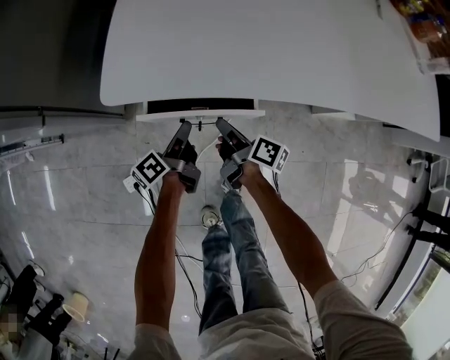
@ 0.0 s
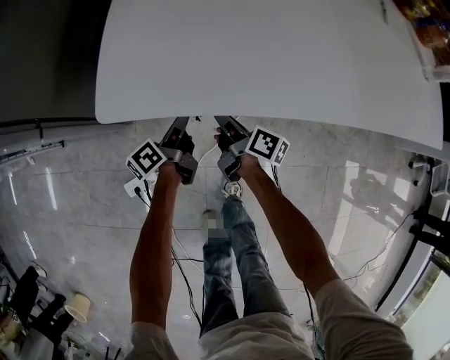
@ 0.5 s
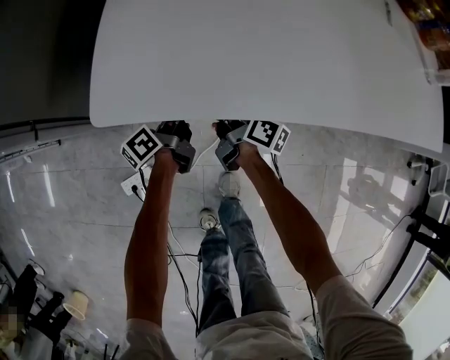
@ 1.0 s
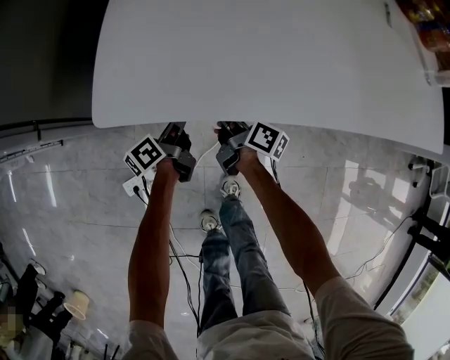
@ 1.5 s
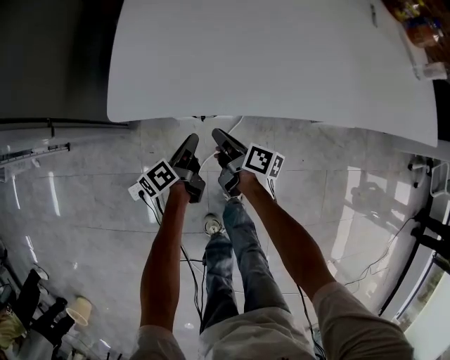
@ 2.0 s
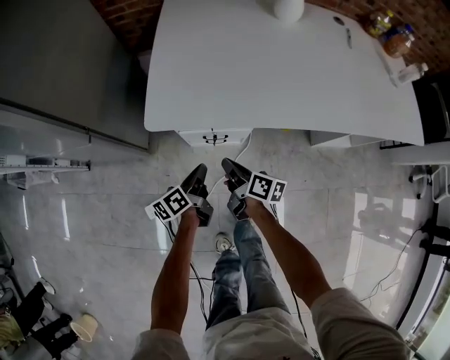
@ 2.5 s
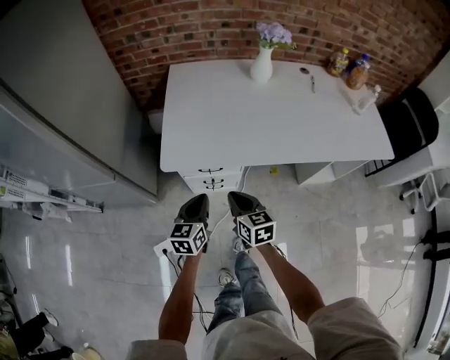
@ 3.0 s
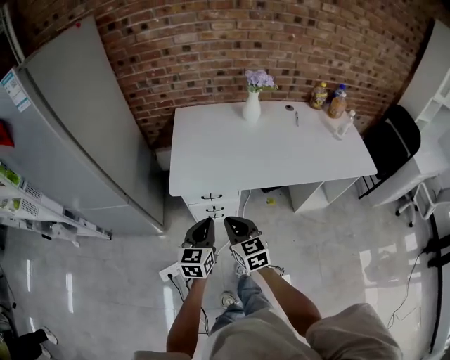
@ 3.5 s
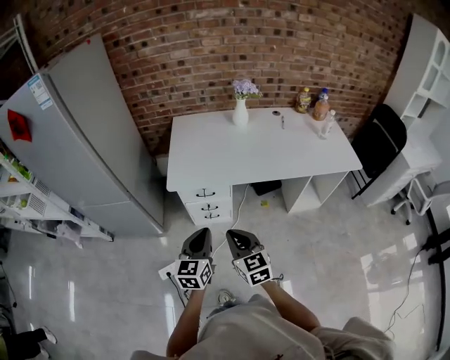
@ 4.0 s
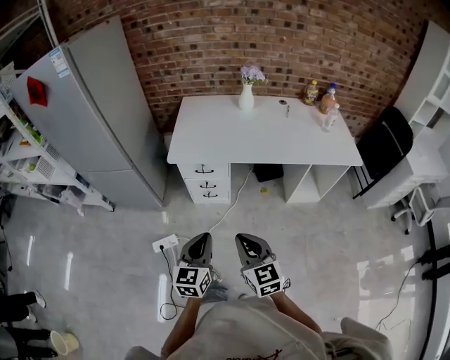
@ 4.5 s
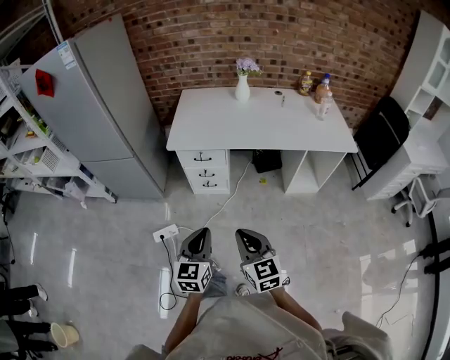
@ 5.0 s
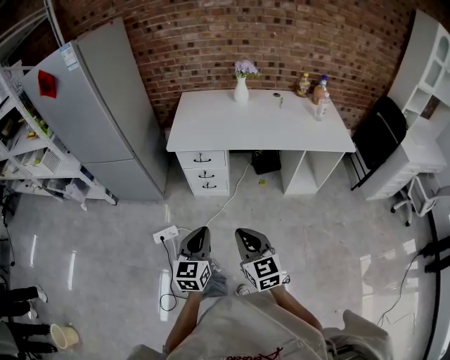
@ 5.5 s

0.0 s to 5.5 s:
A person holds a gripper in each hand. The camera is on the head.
0.0 to 2.0 s: The left gripper travels forward and back again, some 10 cm each way, while the right gripper goes forward and returns, some 10 cm each way.
2.0 to 3.5 s: The grippers both shift upward and backward by some 40 cm. The right gripper rotates around the line of its fingers by roughly 70 degrees, counterclockwise from behind. Meanwhile the left gripper twists roughly 60 degrees clockwise, seen from behind.
3.5 to 5.5 s: The grippers both shift backward by approximately 35 cm.

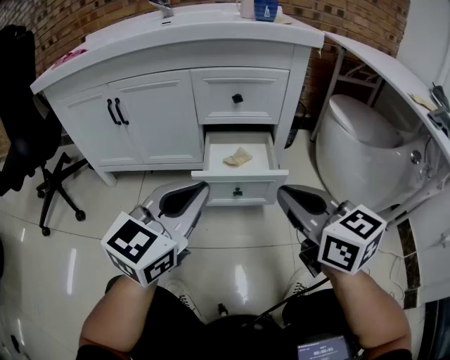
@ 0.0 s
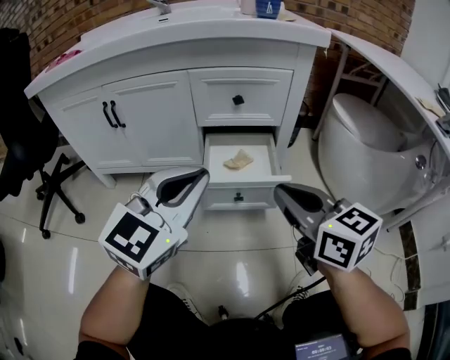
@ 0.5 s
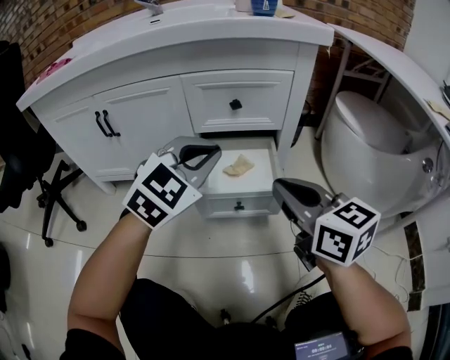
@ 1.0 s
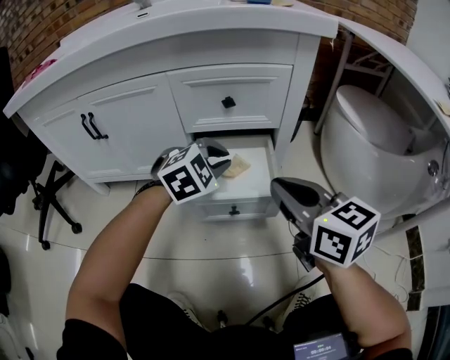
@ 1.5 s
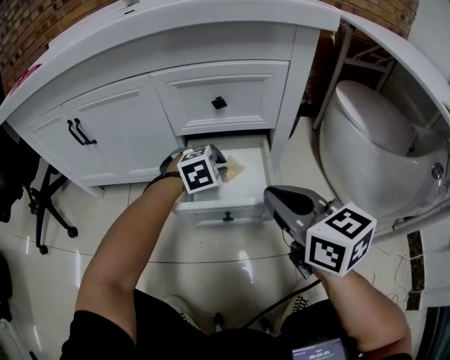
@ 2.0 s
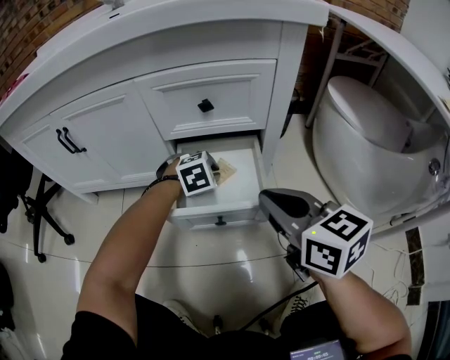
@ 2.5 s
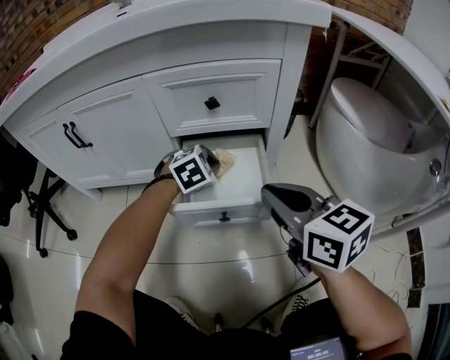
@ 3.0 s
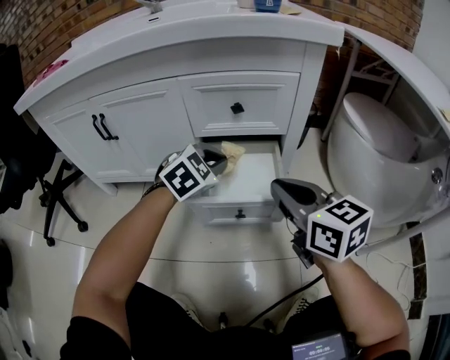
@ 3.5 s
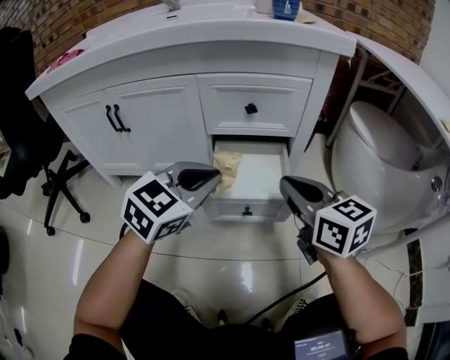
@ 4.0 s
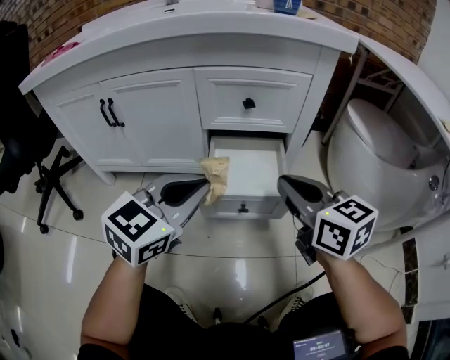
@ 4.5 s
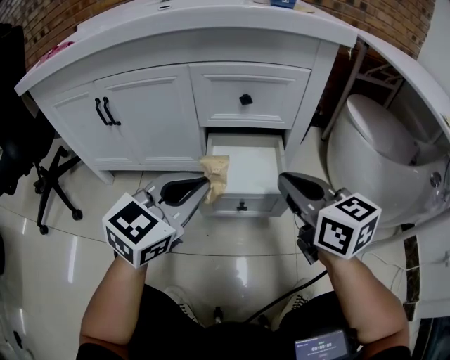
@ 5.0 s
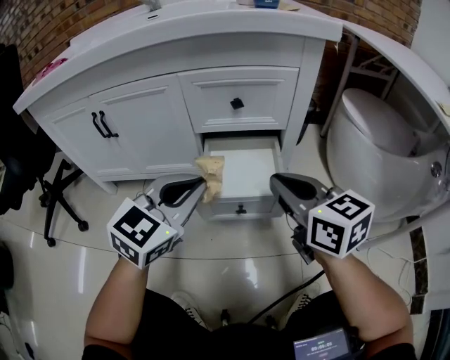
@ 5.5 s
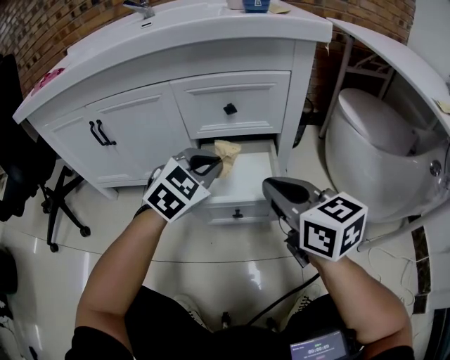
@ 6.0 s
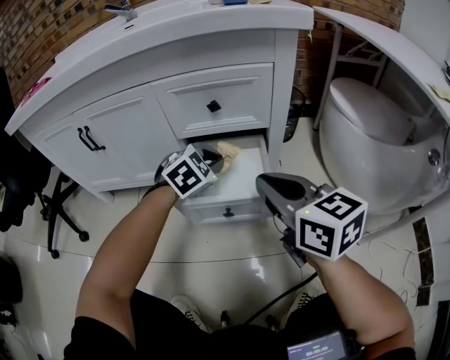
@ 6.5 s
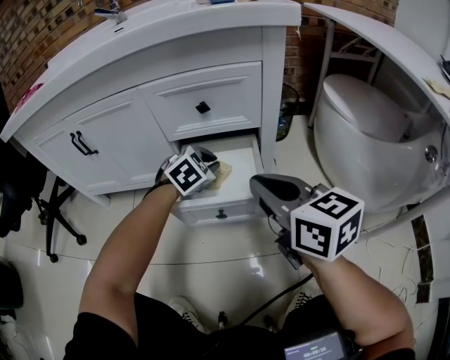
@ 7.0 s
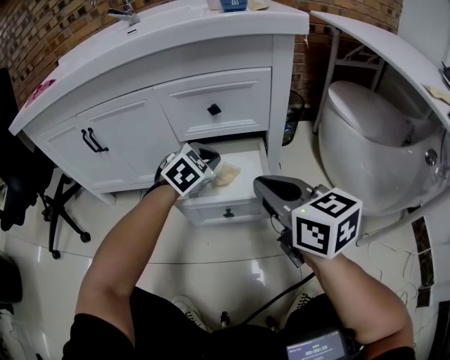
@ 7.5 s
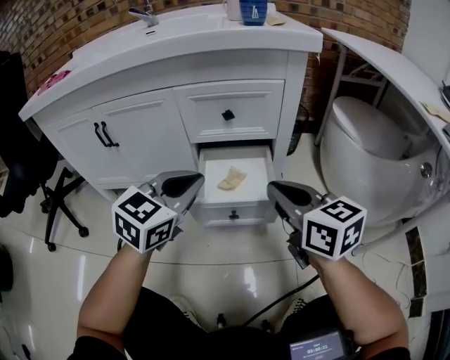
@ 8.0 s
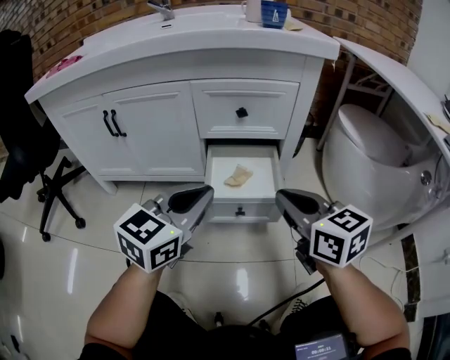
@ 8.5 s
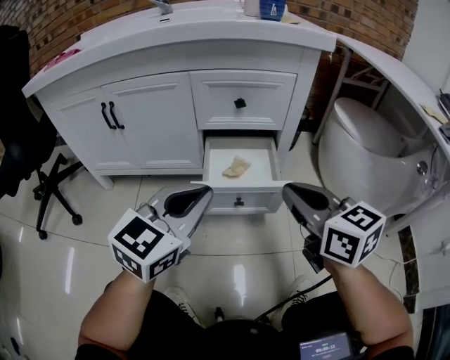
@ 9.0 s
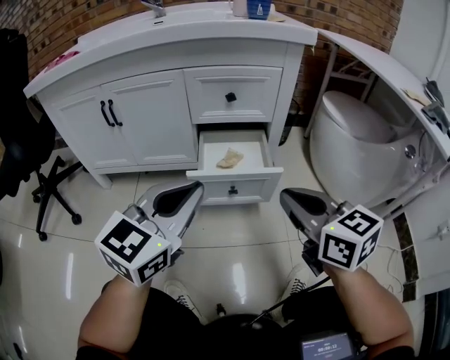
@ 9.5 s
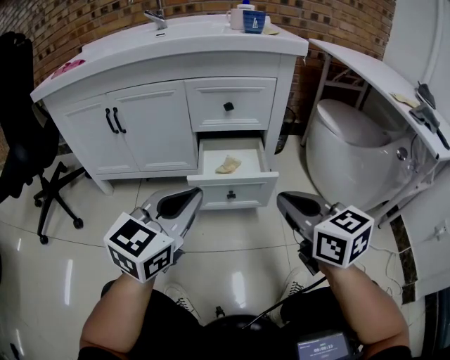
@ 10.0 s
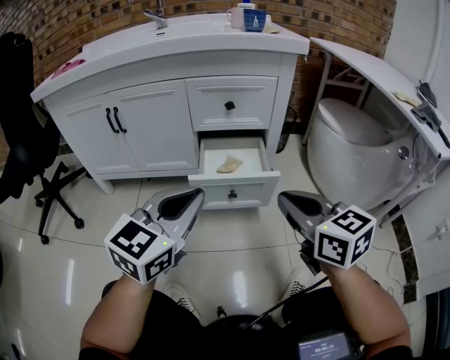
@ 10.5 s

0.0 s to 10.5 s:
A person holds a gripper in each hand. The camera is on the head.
0.0 to 2.0 s: The left gripper moves forward and downward, roughly 35 cm, and tilts its fingers some 50 degrees downward, while the right gripper travels forward and downward by approximately 15 cm.
2.0 to 4.0 s: The left gripper moves upward and backward, roughly 25 cm, and points its fingers about 30 degrees further upward.
4.0 to 6.5 s: The left gripper travels forward, downward and to the right by roughly 20 cm, and turns by some 30 degrees.
6.5 to 8.5 s: The left gripper goes some 25 cm backward, upward and to the left, and angles its fingers upward, by approximately 30 degrees.
8.5 to 10.5 s: The grippers both shift backward by approximately 10 cm.

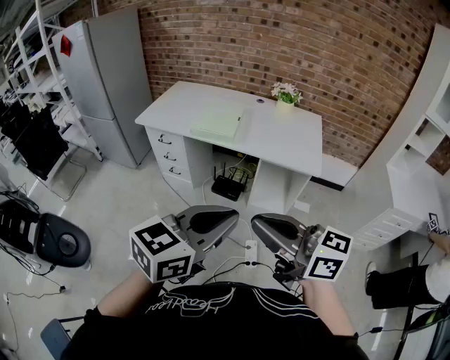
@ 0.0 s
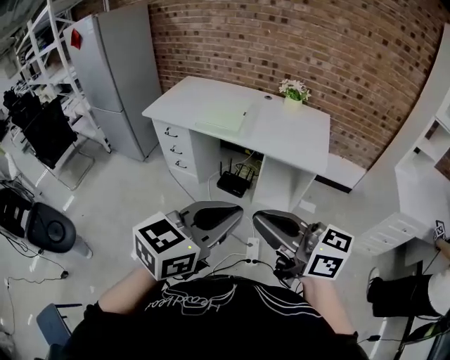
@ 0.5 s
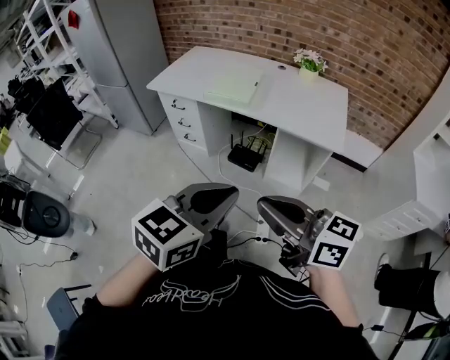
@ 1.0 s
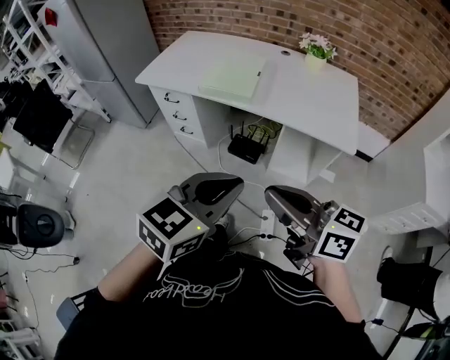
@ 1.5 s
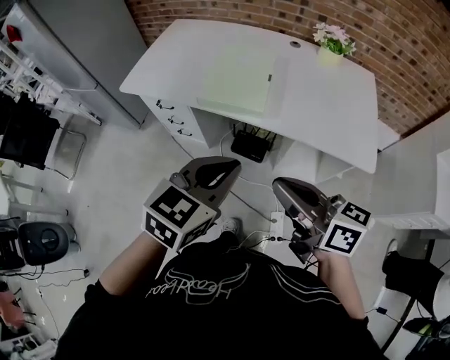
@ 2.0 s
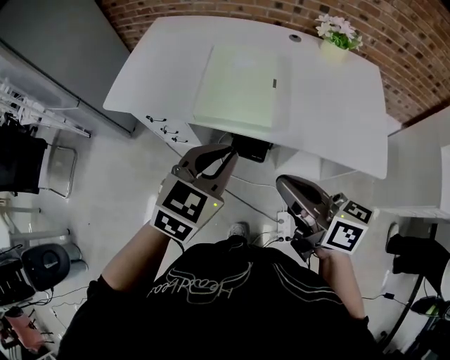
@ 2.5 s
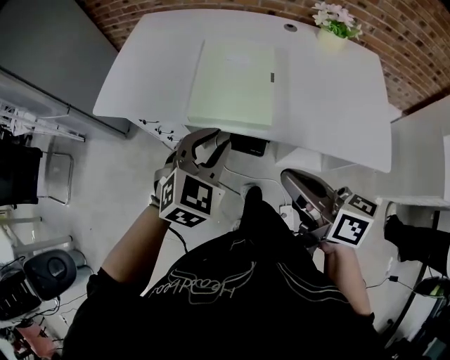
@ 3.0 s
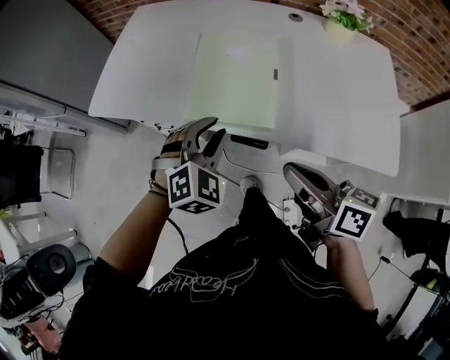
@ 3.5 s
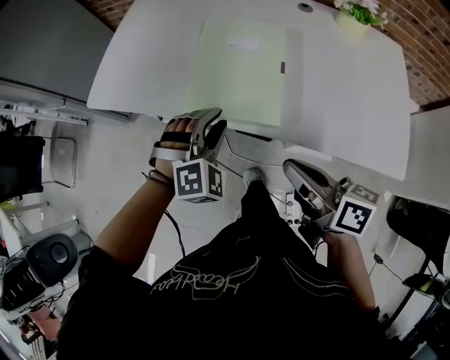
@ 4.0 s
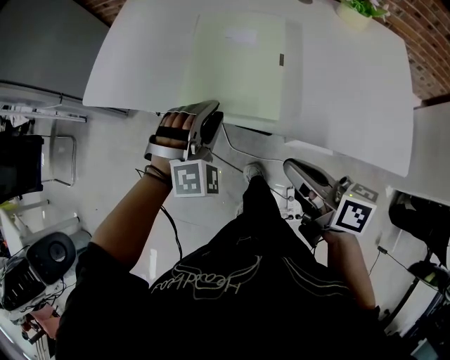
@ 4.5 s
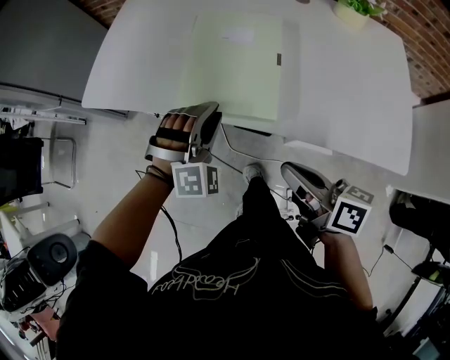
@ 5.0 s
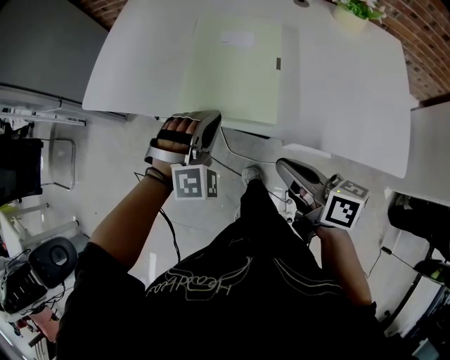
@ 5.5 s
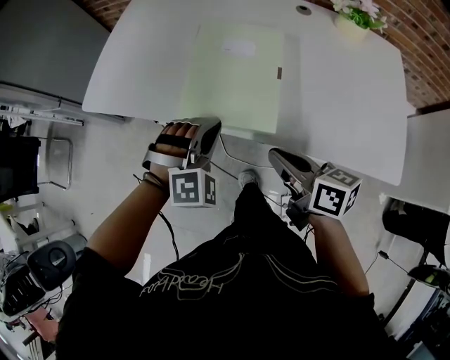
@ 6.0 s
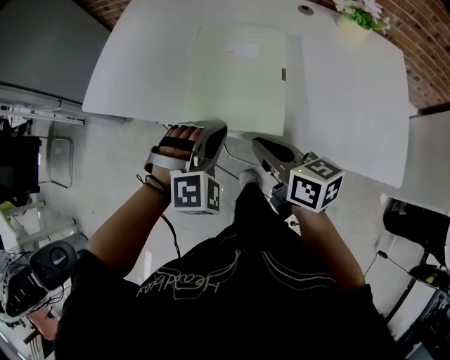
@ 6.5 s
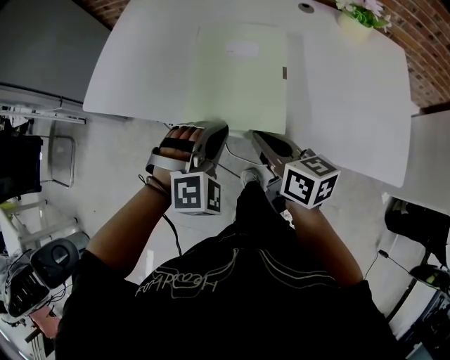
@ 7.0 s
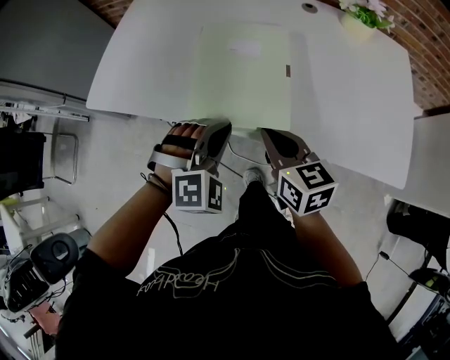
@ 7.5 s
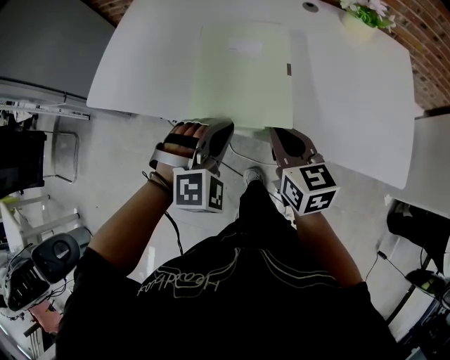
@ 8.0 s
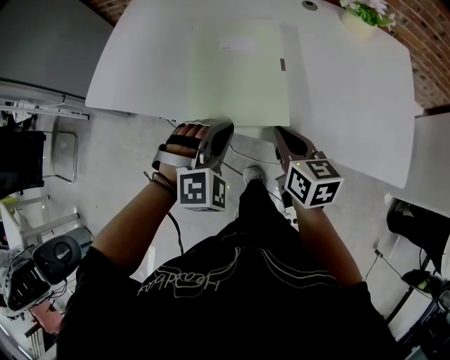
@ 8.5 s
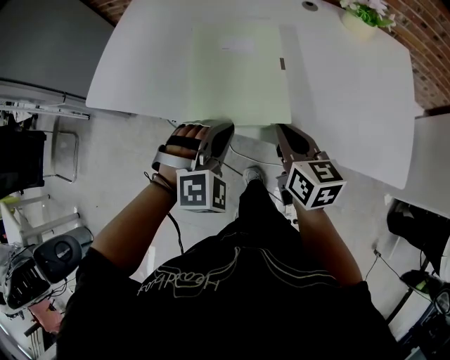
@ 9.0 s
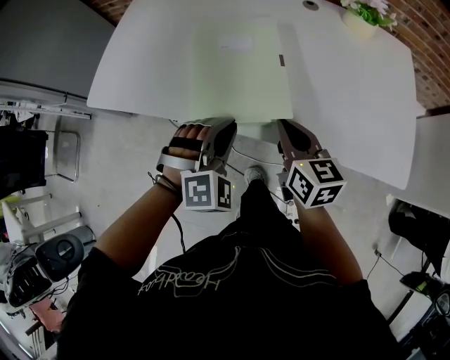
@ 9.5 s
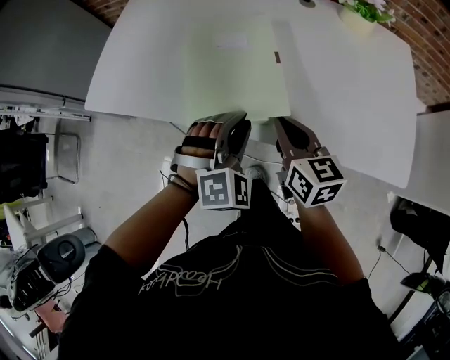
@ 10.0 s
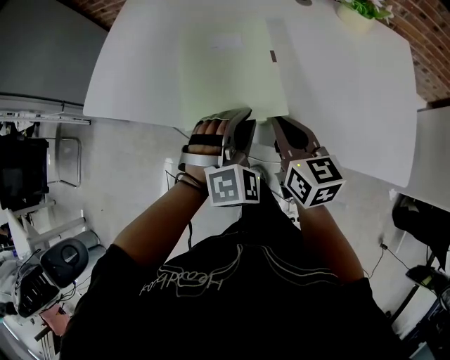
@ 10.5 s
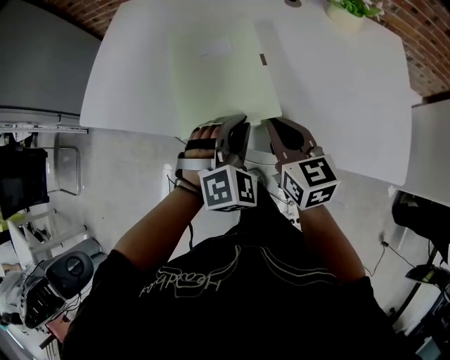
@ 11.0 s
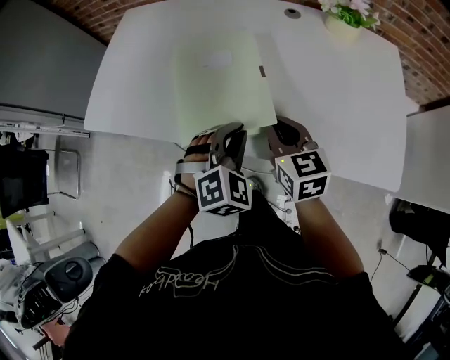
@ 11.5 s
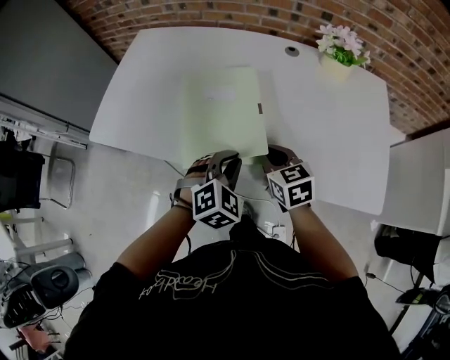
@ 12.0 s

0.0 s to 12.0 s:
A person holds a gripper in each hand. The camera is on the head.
0.0 to 2.0 s: Both grippers travel together forward and downward, approximately 35 cm. The right gripper swivels some 20 degrees.
2.0 to 4.0 s: Both grippers travel together forward and downward, some 25 cm. The left gripper twists approximately 60 degrees clockwise, seen from behind, and opens its fingers.
4.0 to 6.0 s: The right gripper changes place by some 5 cm. The left gripper closes.
6.0 to 8.0 s: The right gripper goes roughly 5 cm forward, and turns by approximately 30 degrees.
8.0 to 10.0 s: The grippers stay close to where they were, moving slightly.
10.0 to 12.0 s: The right gripper rotates approximately 20 degrees. Meanwhile the left gripper rotates some 20 degrees.
